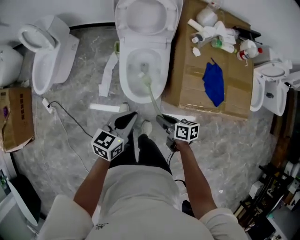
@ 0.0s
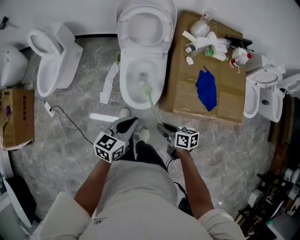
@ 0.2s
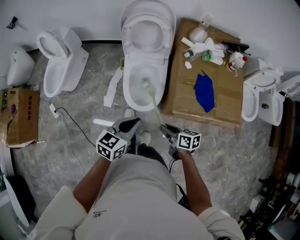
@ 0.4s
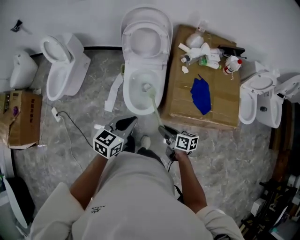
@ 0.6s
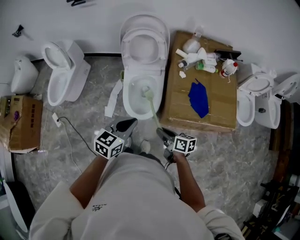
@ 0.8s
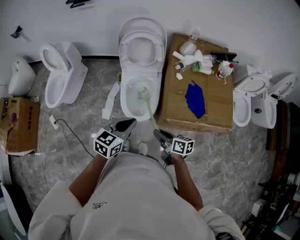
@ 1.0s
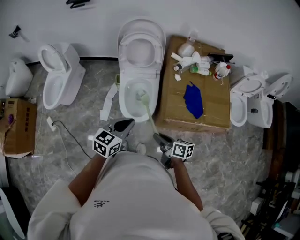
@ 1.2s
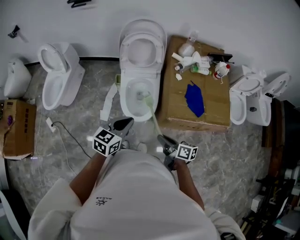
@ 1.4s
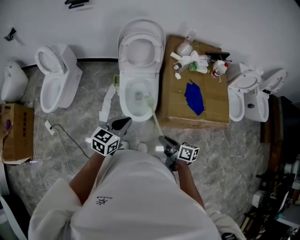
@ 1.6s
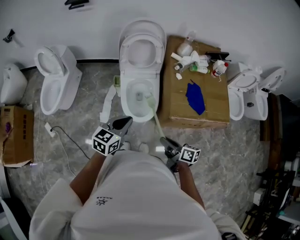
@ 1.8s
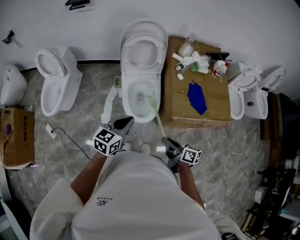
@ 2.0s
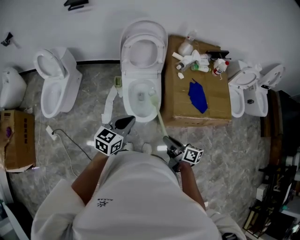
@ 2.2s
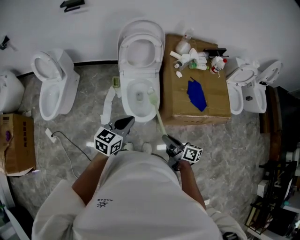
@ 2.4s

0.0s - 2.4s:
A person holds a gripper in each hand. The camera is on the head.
0.0s - 1.2s: The left gripper moves upward, approximately 15 cm.
1.2s - 2.4s: The left gripper shifts by approximately 10 cm.

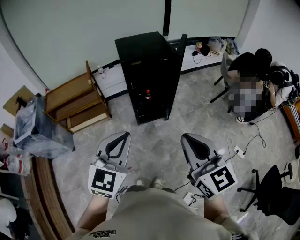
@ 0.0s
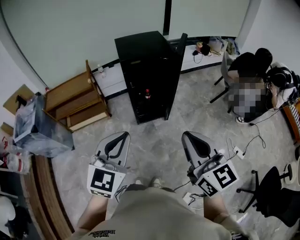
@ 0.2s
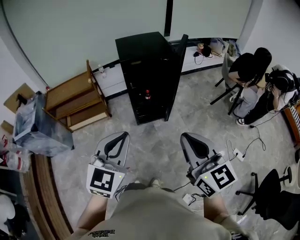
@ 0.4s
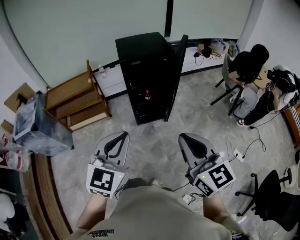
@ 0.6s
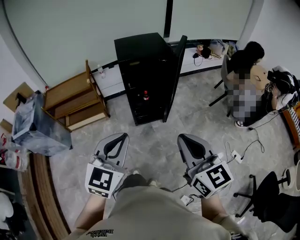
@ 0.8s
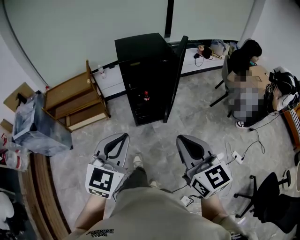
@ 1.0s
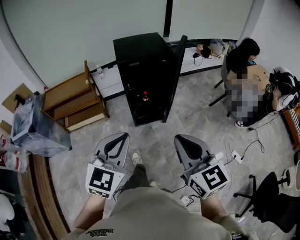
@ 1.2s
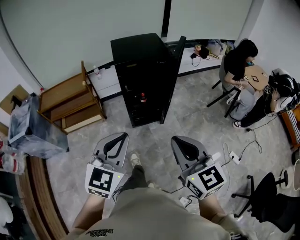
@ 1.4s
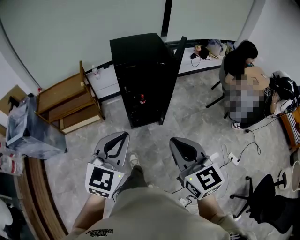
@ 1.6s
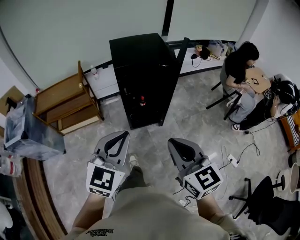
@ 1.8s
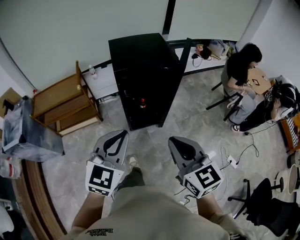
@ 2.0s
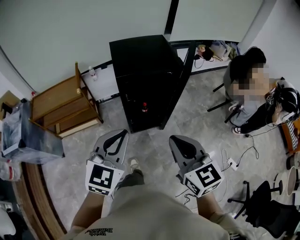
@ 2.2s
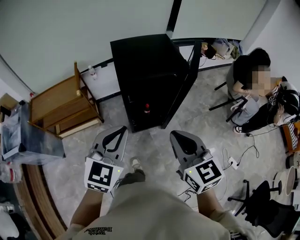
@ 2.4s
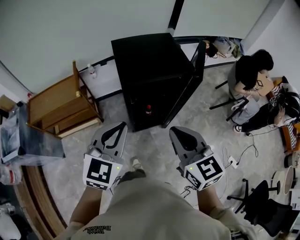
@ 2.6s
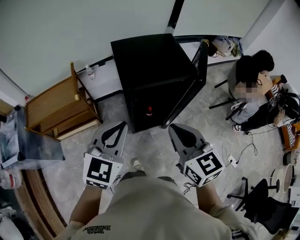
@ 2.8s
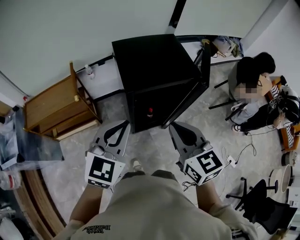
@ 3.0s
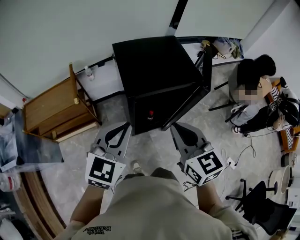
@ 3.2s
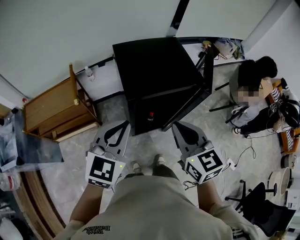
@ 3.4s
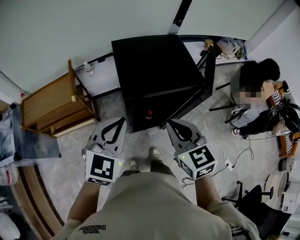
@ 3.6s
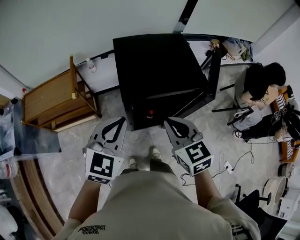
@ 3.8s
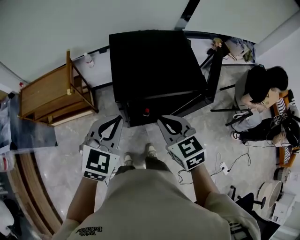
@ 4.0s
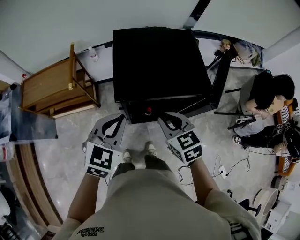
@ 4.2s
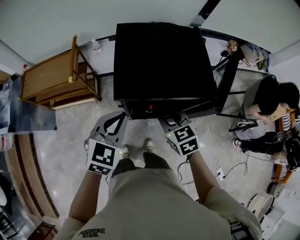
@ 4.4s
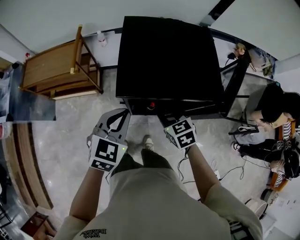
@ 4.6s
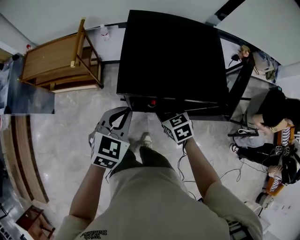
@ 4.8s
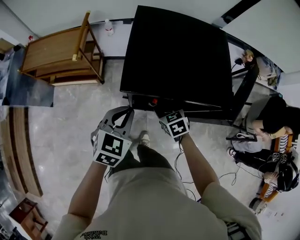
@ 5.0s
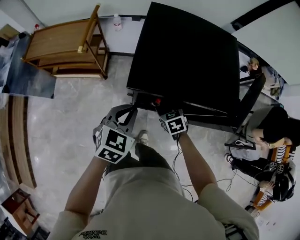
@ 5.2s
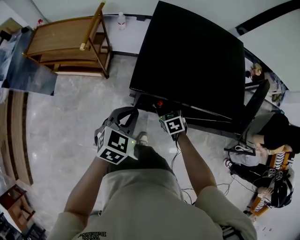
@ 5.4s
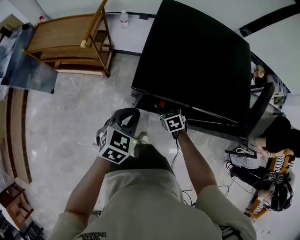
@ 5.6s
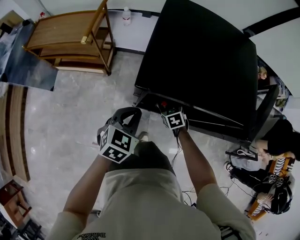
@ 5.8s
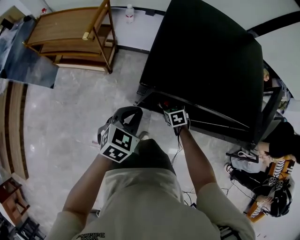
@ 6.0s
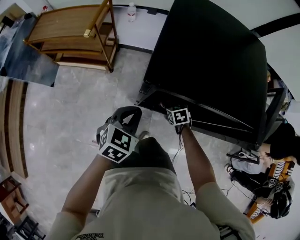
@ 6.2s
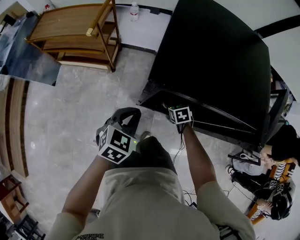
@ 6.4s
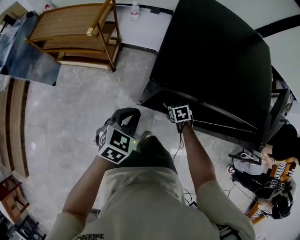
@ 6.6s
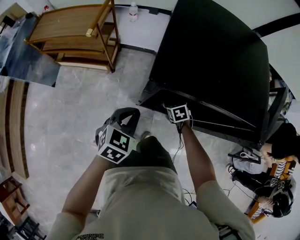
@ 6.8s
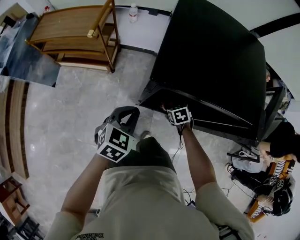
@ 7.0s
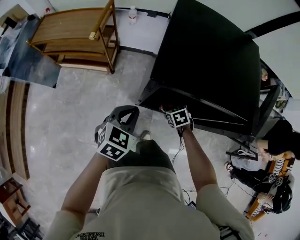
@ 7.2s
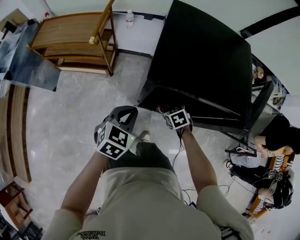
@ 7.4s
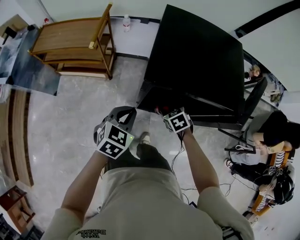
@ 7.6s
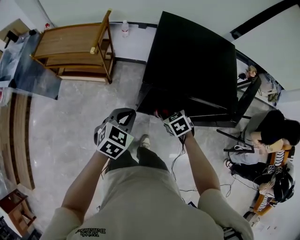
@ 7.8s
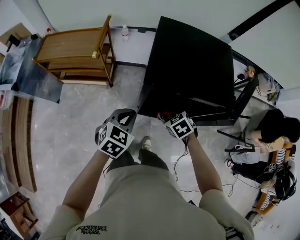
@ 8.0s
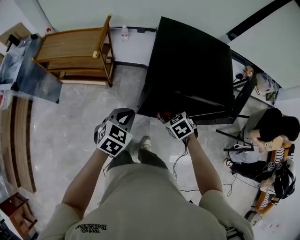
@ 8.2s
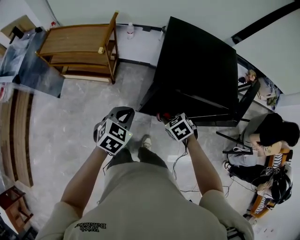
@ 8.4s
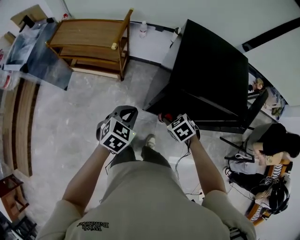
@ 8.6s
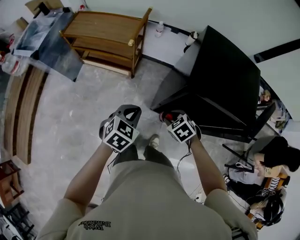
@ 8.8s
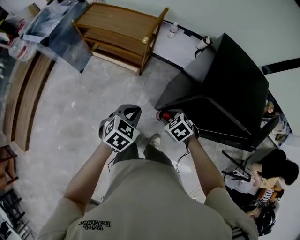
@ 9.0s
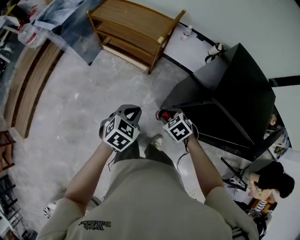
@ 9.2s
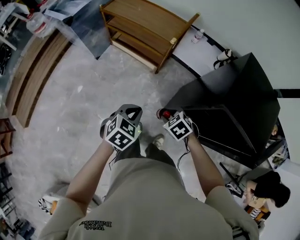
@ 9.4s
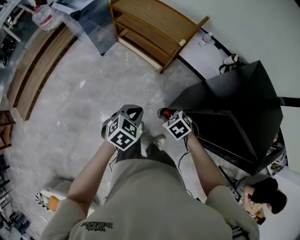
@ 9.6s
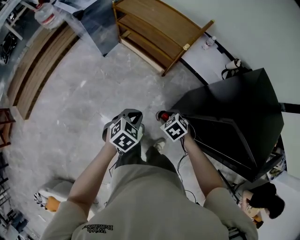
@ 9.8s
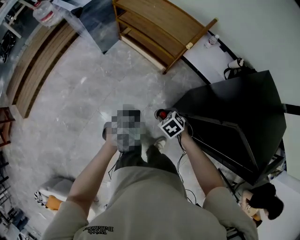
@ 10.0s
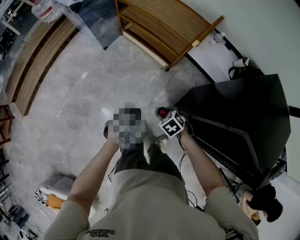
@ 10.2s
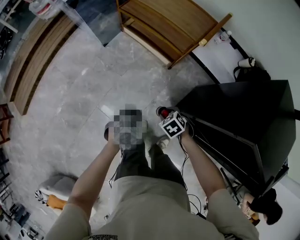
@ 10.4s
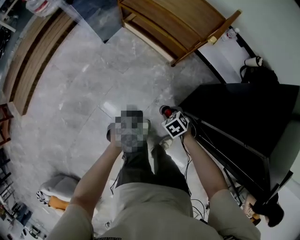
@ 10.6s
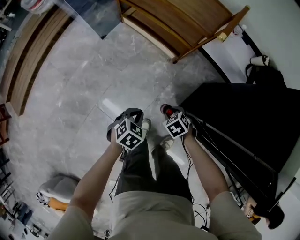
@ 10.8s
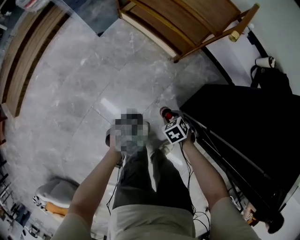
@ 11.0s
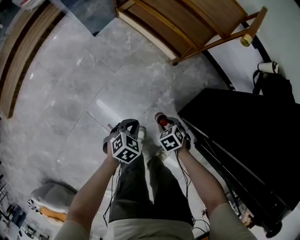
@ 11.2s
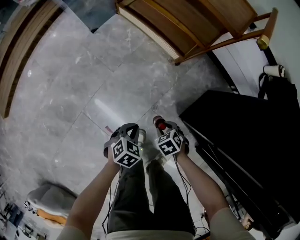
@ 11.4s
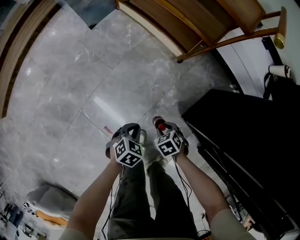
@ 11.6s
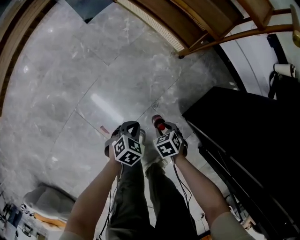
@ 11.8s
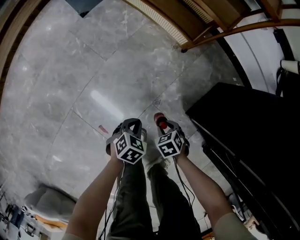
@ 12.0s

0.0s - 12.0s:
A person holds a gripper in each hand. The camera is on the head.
0.0s - 1.6s: The right gripper shifts some 10 cm forward and downward. Meanwhile the left gripper travels forward by approximately 10 cm.
1.6s - 3.0s: Both grippers move forward, some 30 cm.
3.0s - 4.4s: The left gripper goes approximately 15 cm forward and downward, while the right gripper is displaced downward and forward by some 25 cm, and changes its angle by approximately 30 degrees.
4.4s - 6.0s: The left gripper travels downward by some 20 cm. The right gripper is displaced downward by about 35 cm, changes its angle by roughly 20 degrees, and opens.
6.0s - 7.6s: The left gripper goes approximately 5 cm upward; the right gripper moves upward and backward, some 15 cm.
7.6s - 9.0s: The grippers both shift to the left by about 15 cm. The right gripper rotates about 30 degrees.
9.0s - 10.4s: The right gripper shifts some 25 cm downward, to the left and forward. The left gripper heads downward and to the left, covering about 25 cm, and rotates some 20 degrees.
10.4s - 12.0s: The grippers both shift downward by roughly 40 cm.

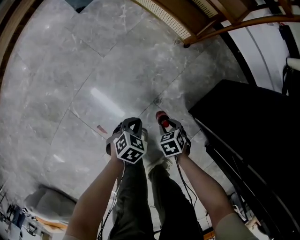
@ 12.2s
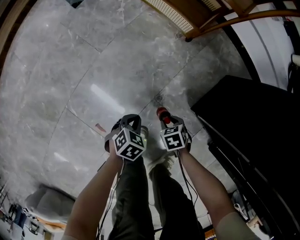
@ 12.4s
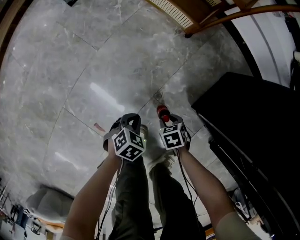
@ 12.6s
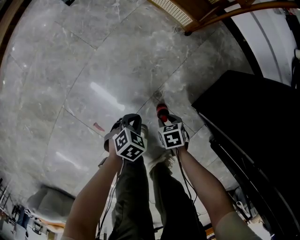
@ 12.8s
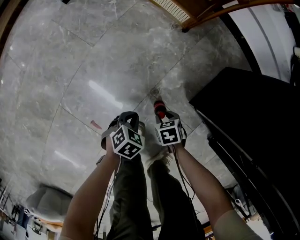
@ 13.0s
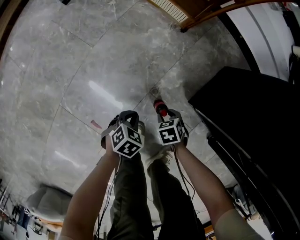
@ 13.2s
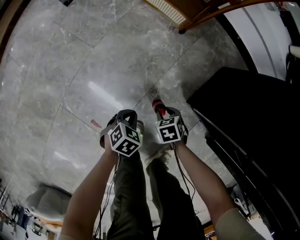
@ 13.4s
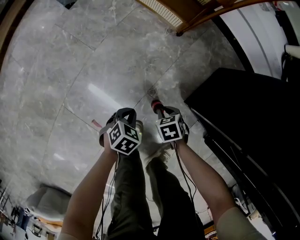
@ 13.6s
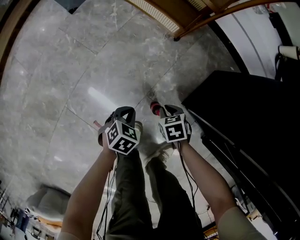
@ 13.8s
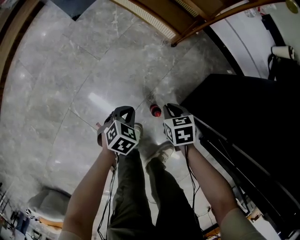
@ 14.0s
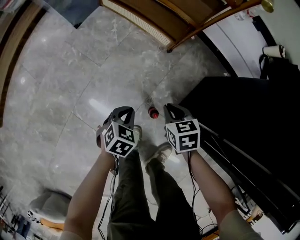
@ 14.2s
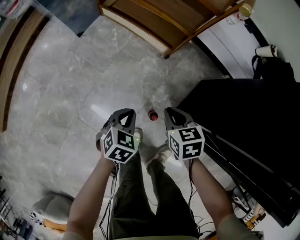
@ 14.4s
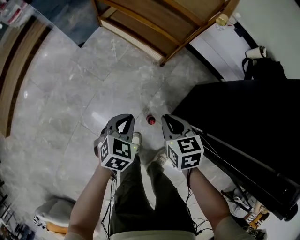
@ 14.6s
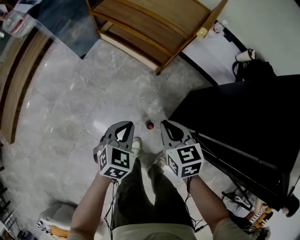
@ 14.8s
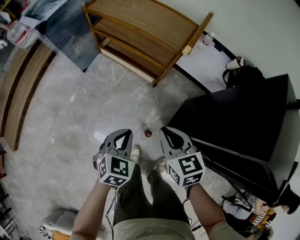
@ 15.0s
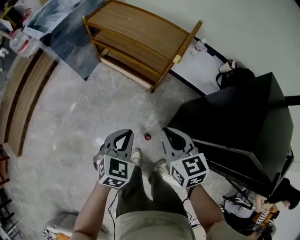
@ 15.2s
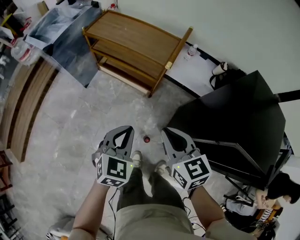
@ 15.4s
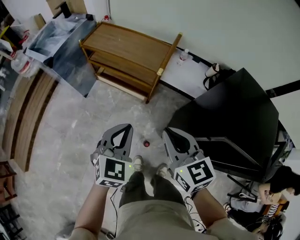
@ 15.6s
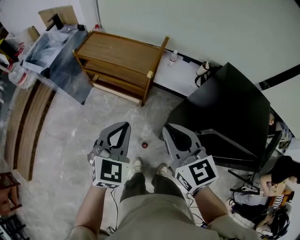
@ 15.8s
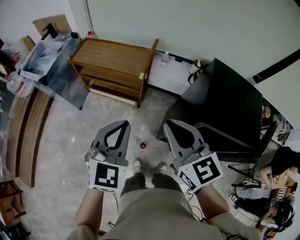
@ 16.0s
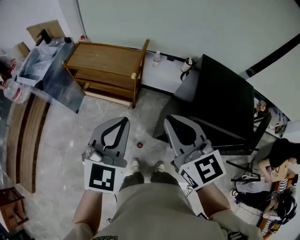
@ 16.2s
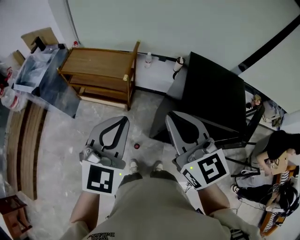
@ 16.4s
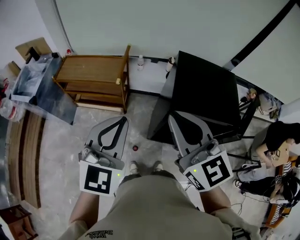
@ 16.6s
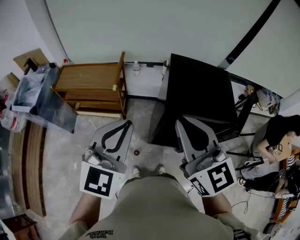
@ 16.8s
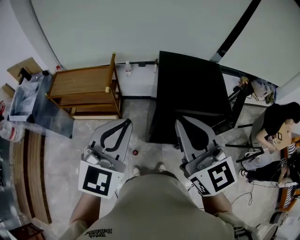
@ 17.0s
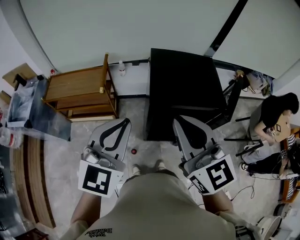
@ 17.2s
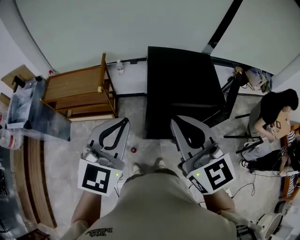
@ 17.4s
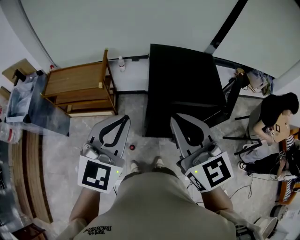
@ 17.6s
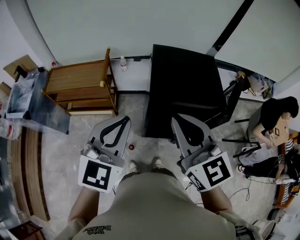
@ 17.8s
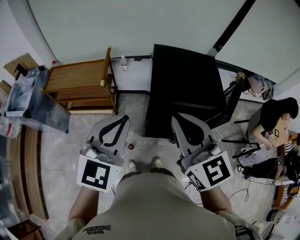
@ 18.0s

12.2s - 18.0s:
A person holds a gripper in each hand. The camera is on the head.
13.6s - 15.0s: Both grippers move upward, roughly 60 cm. The right gripper tips its fingers upward by about 40 degrees; the left gripper swivels about 30 degrees.
15.0s - 16.6s: The grippers both shift upward by roughly 50 cm. The left gripper tilts its fingers roughly 30 degrees upward. The right gripper tilts its fingers about 30 degrees upward.
16.6s - 18.0s: The grippers both shift to the right by about 10 cm.

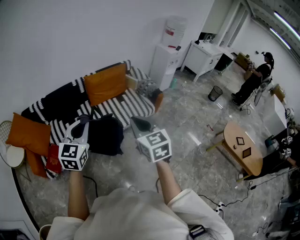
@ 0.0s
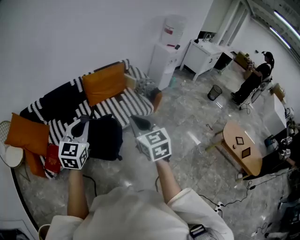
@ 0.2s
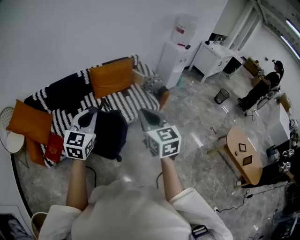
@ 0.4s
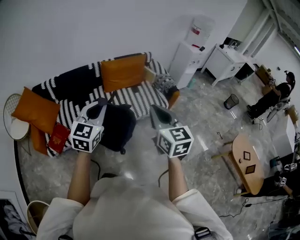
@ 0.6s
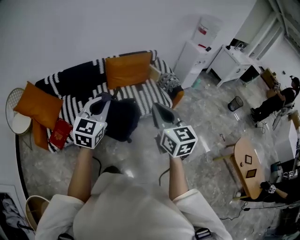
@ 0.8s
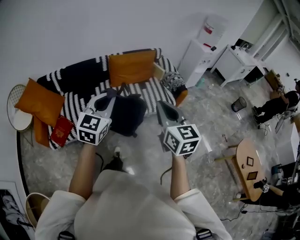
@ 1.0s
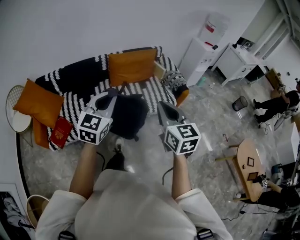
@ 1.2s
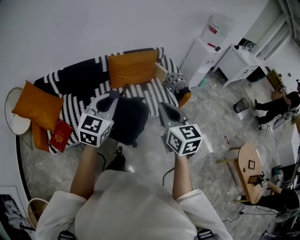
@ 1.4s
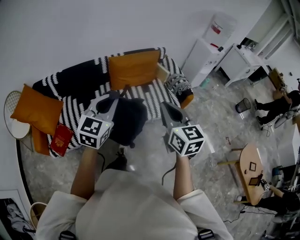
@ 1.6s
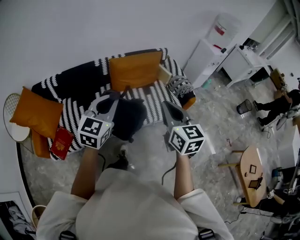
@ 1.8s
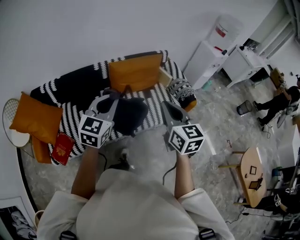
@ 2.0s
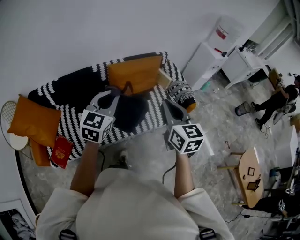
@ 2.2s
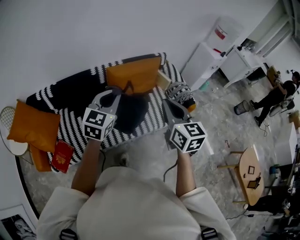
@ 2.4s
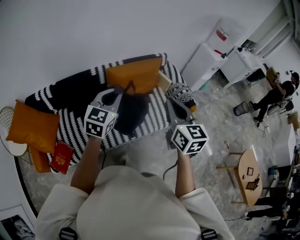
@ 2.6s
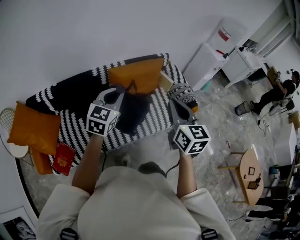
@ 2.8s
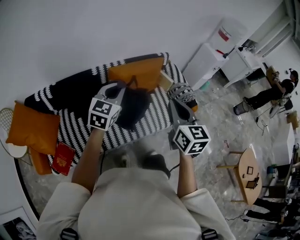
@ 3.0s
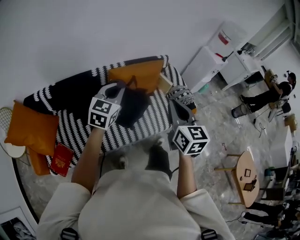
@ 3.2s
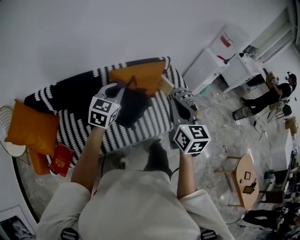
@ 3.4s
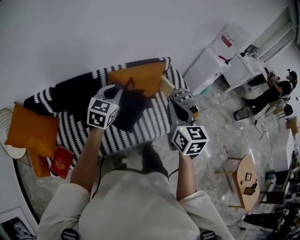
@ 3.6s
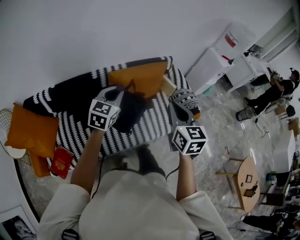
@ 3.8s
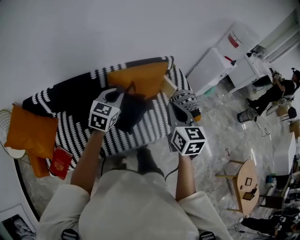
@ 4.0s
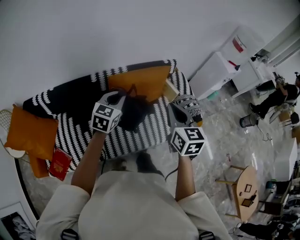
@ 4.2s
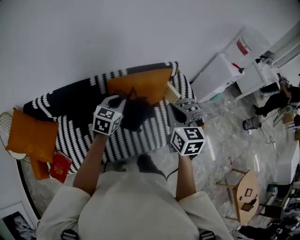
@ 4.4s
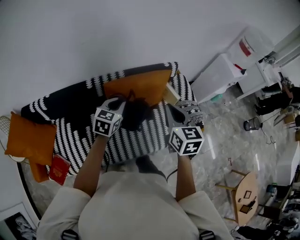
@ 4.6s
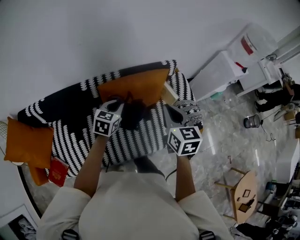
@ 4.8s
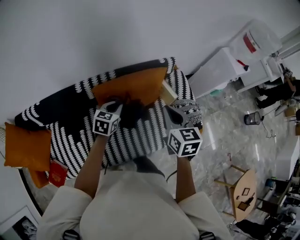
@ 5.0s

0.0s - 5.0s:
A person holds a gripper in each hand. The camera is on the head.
0.0s - 1.6s: The grippers both shift forward by about 20 cm.
1.6s - 3.4s: Both grippers travel together forward, some 25 cm.
3.4s - 5.0s: The grippers both shift forward and downward by approximately 40 cm. The left gripper turns by approximately 30 degrees.
